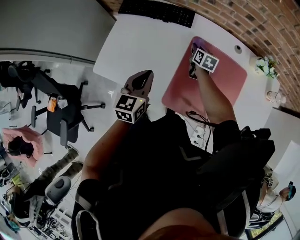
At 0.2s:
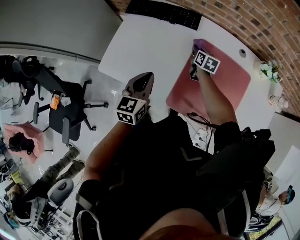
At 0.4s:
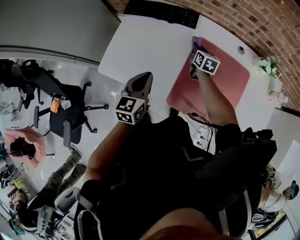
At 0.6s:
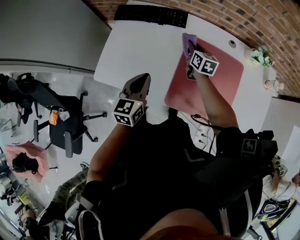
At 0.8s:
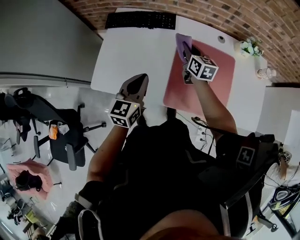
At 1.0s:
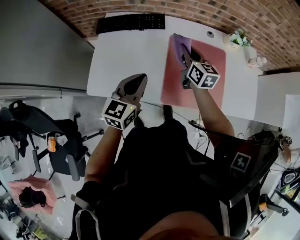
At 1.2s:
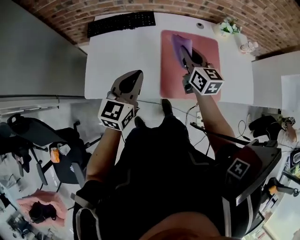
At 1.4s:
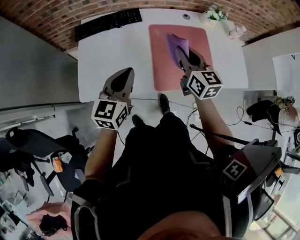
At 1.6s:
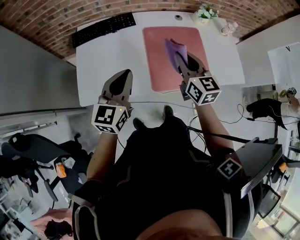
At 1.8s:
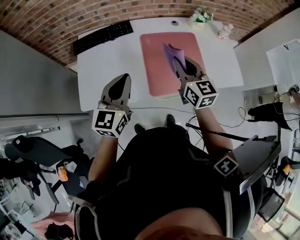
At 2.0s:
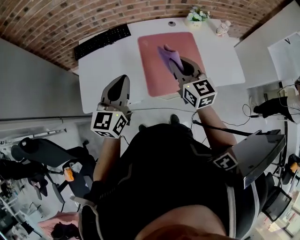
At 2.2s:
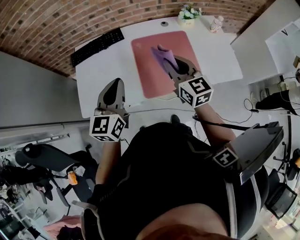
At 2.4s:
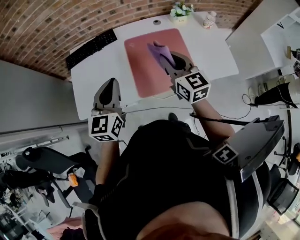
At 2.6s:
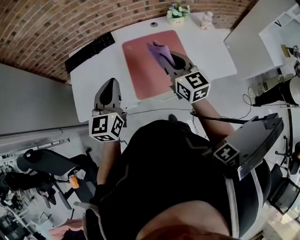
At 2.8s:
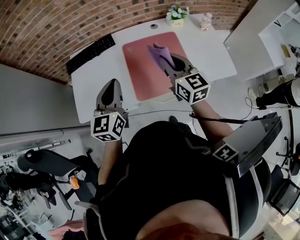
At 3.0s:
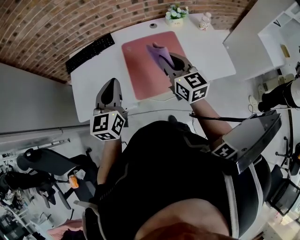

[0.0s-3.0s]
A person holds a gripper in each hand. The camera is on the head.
0.0s to 1.6s: The right gripper shifts approximately 25 cm upward, and turns by roughly 30 degrees; the left gripper moves upward, some 10 cm, and changes its angle by about 30 degrees.
1.6s to 3.0s: Both grippers move to the right, approximately 10 cm.

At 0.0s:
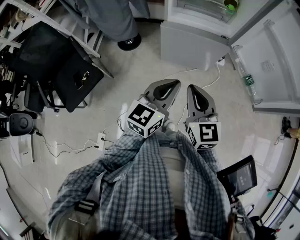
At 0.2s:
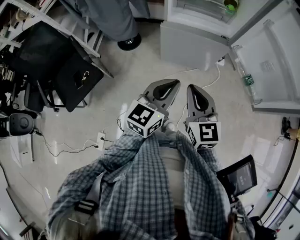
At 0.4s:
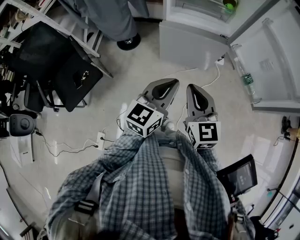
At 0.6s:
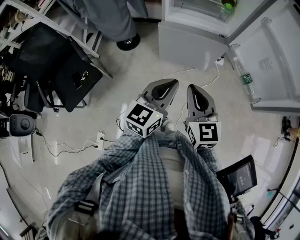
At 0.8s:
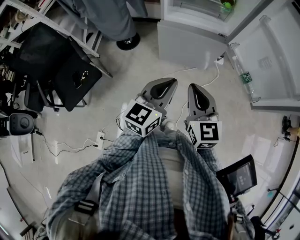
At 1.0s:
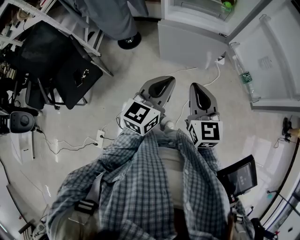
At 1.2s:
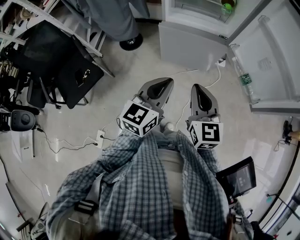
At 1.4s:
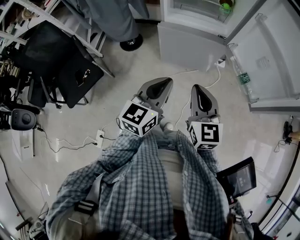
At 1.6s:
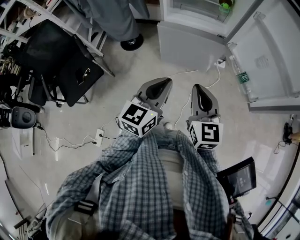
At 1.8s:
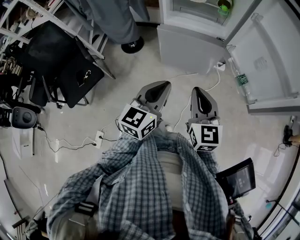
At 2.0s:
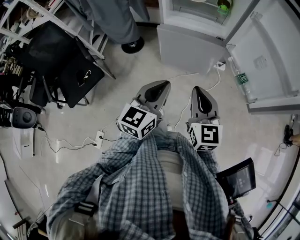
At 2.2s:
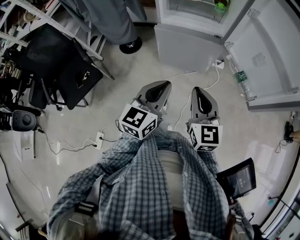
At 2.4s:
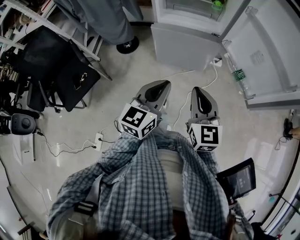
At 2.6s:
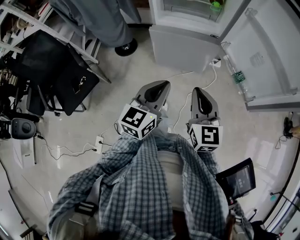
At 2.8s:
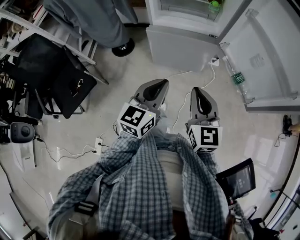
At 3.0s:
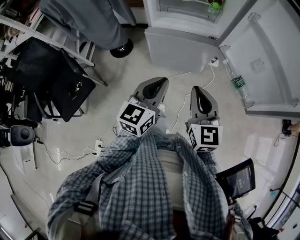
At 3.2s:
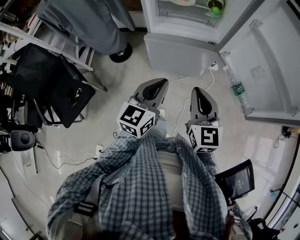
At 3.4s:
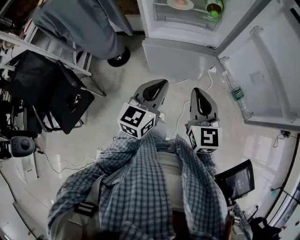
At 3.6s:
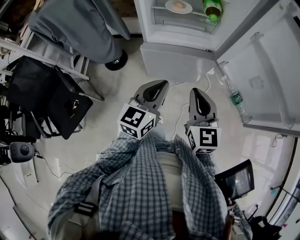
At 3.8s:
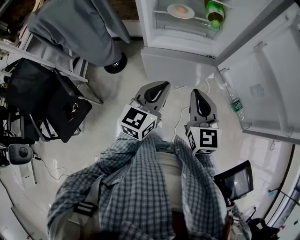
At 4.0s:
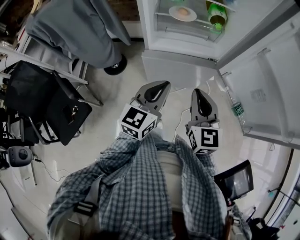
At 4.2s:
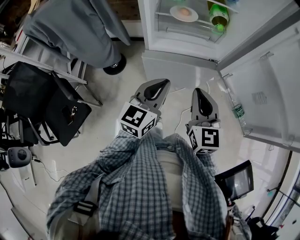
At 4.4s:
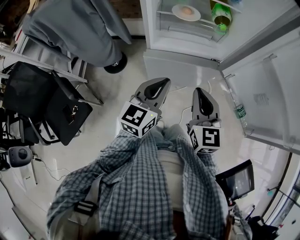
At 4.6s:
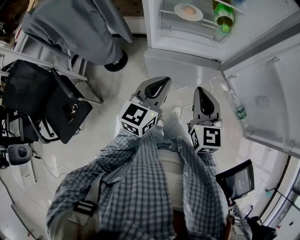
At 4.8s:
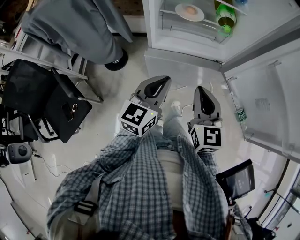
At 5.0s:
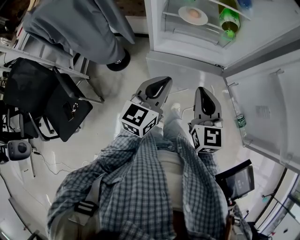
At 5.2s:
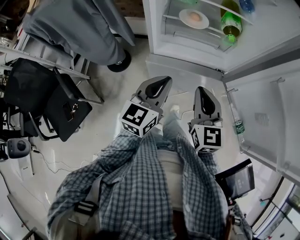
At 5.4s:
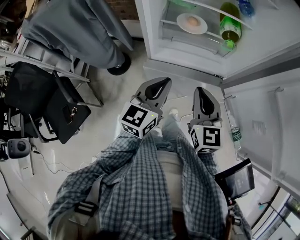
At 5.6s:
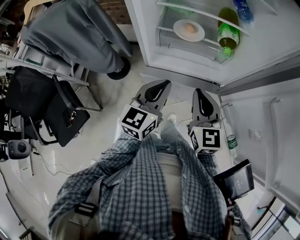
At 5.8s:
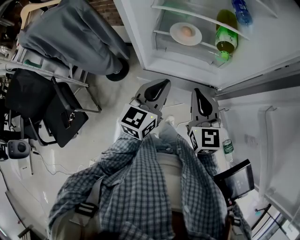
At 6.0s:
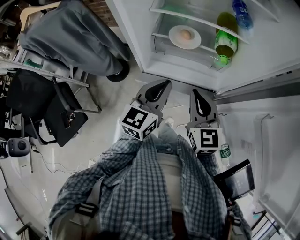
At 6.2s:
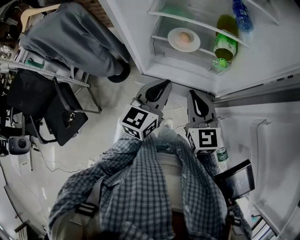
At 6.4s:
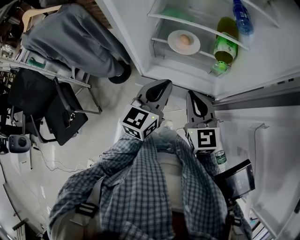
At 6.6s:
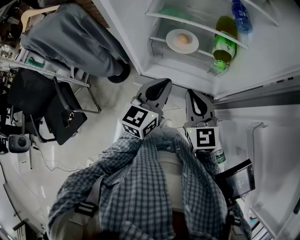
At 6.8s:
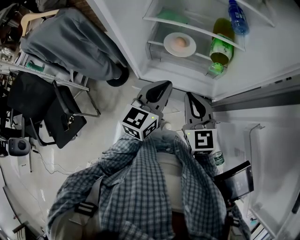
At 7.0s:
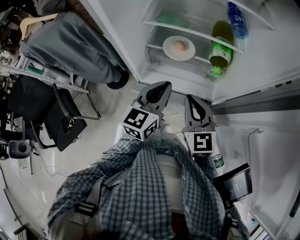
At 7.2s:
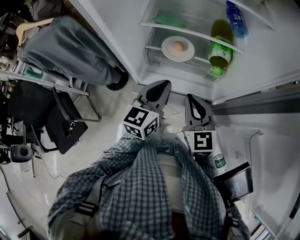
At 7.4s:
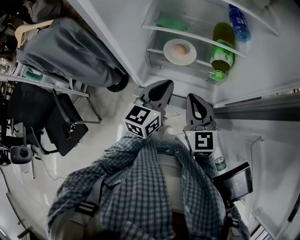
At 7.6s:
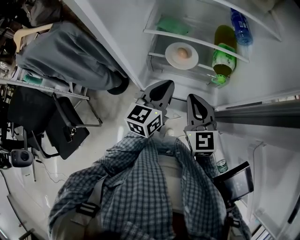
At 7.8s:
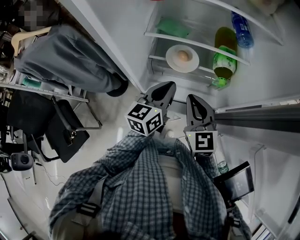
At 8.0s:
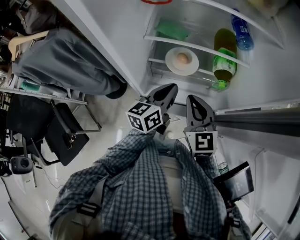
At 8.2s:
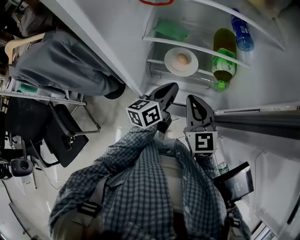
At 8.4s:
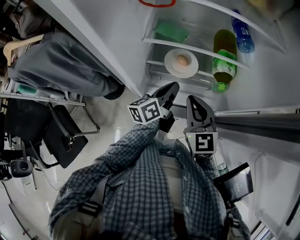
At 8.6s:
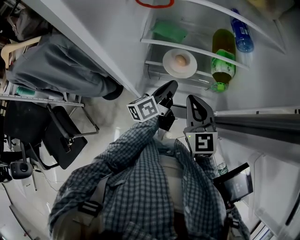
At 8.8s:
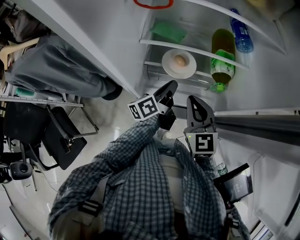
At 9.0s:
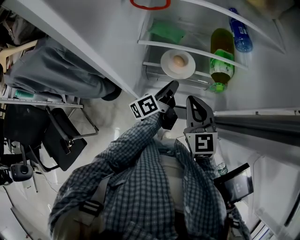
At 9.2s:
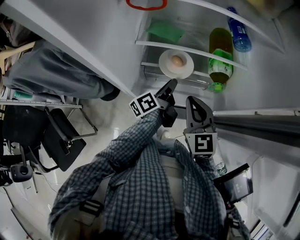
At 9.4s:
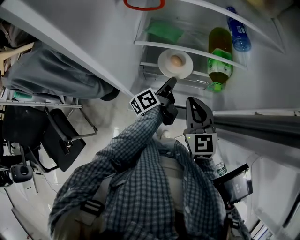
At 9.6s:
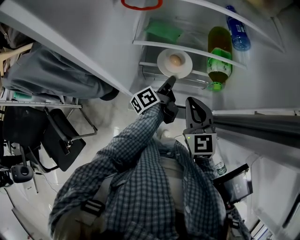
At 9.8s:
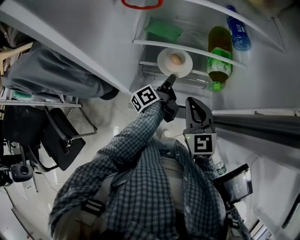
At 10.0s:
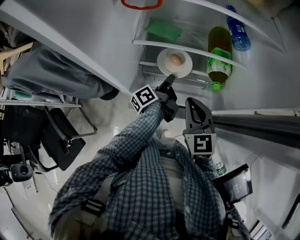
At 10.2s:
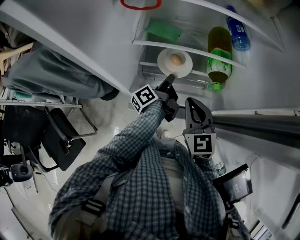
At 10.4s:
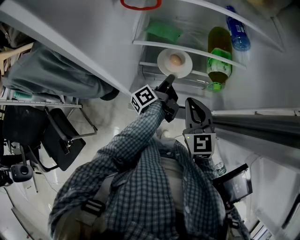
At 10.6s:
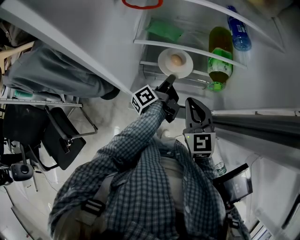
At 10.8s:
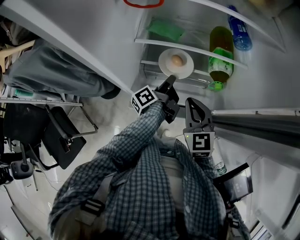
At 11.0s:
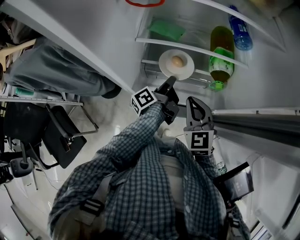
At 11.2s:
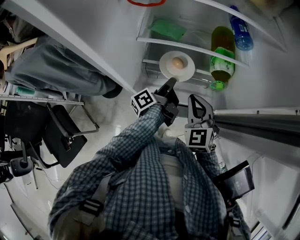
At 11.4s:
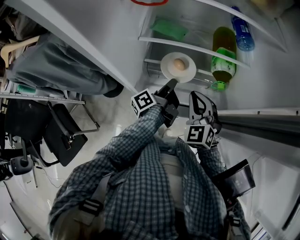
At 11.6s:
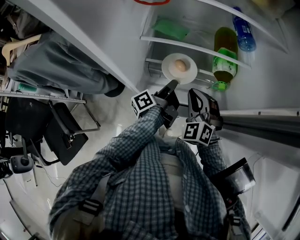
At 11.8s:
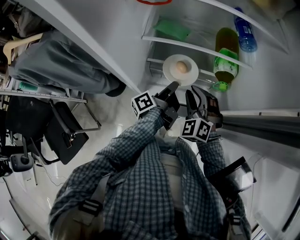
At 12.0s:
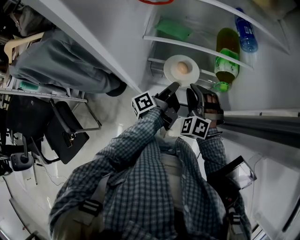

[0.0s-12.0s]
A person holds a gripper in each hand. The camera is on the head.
0.0s to 1.6s: The right gripper moves some 10 cm.
1.6s to 3.0s: The right gripper changes place by approximately 5 cm.
3.0s to 4.4s: The right gripper shifts by about 15 cm.
4.4s to 6.0s: The right gripper ends up some 20 cm from where it was.
6.0s to 7.6s: The right gripper ends up roughly 10 cm from where it was.
10.4s to 12.0s: The right gripper heads downward, covering roughly 5 cm, twists roughly 50 degrees counterclockwise, seen from behind, and opens its fingers.

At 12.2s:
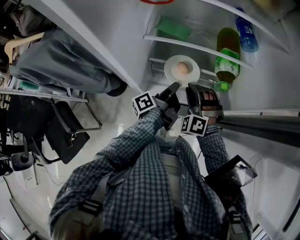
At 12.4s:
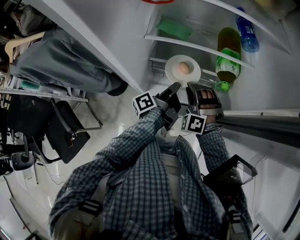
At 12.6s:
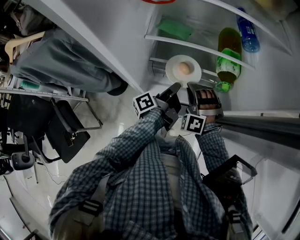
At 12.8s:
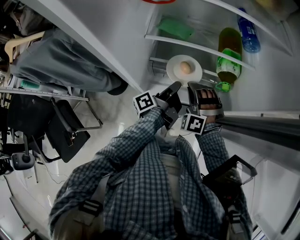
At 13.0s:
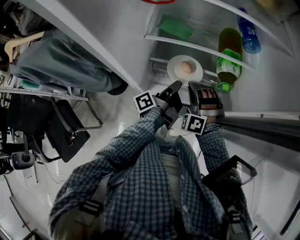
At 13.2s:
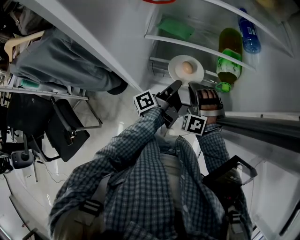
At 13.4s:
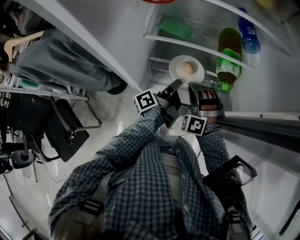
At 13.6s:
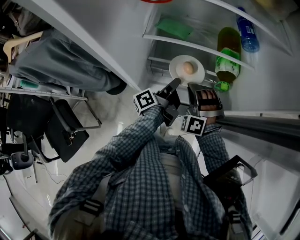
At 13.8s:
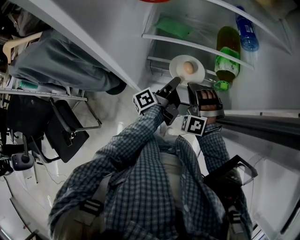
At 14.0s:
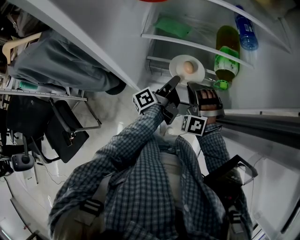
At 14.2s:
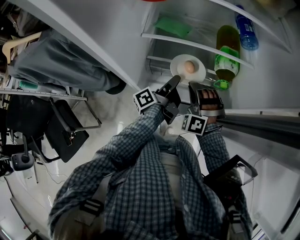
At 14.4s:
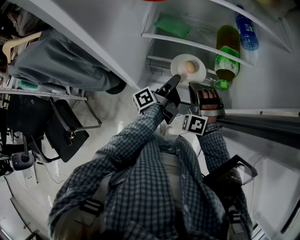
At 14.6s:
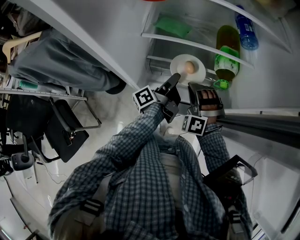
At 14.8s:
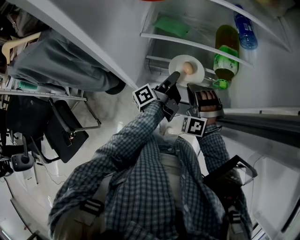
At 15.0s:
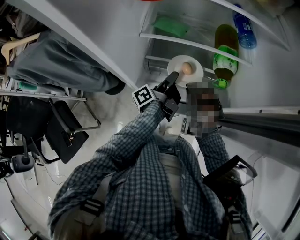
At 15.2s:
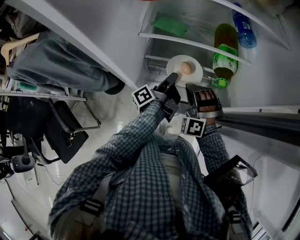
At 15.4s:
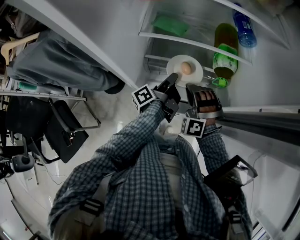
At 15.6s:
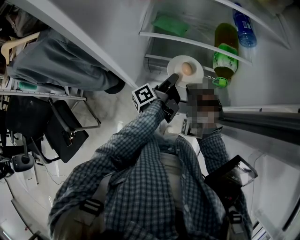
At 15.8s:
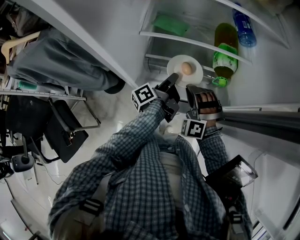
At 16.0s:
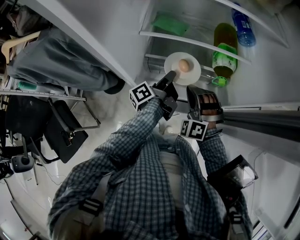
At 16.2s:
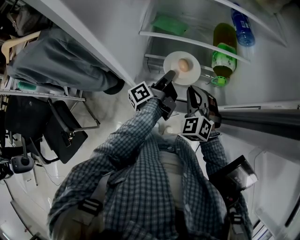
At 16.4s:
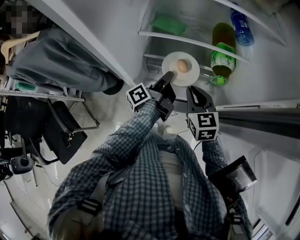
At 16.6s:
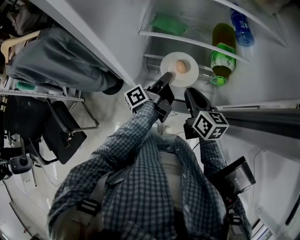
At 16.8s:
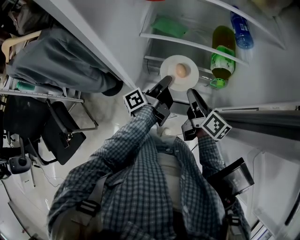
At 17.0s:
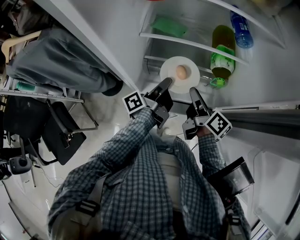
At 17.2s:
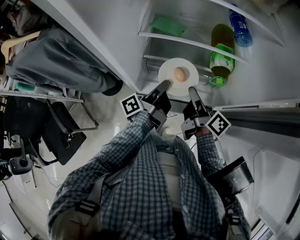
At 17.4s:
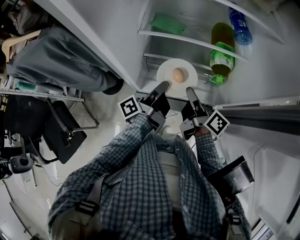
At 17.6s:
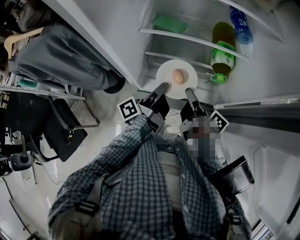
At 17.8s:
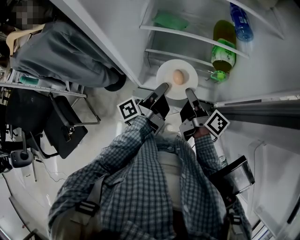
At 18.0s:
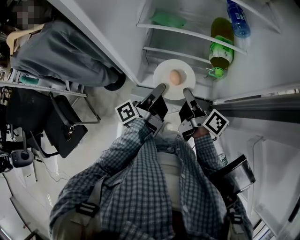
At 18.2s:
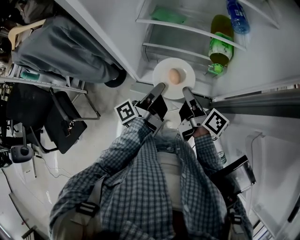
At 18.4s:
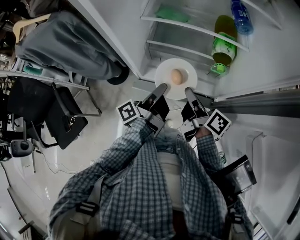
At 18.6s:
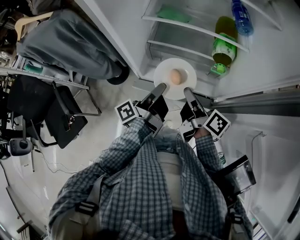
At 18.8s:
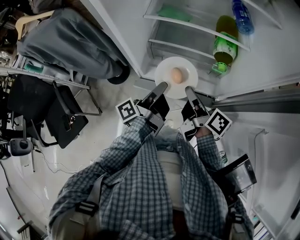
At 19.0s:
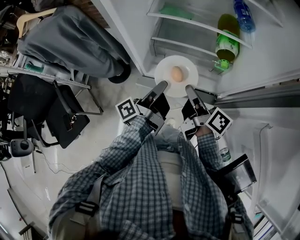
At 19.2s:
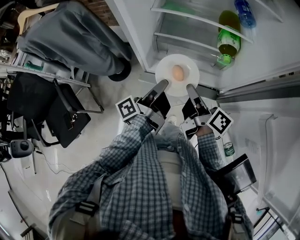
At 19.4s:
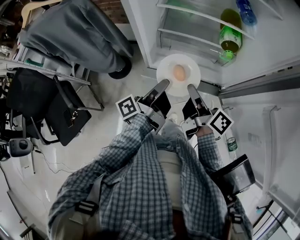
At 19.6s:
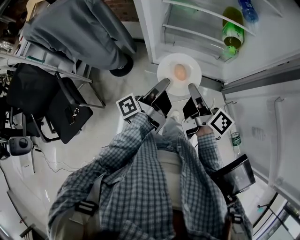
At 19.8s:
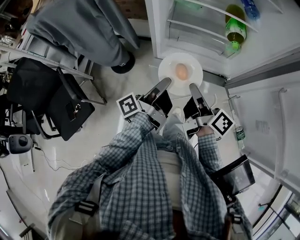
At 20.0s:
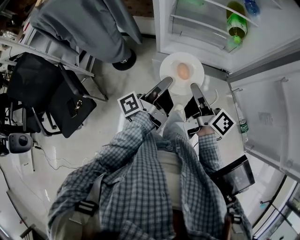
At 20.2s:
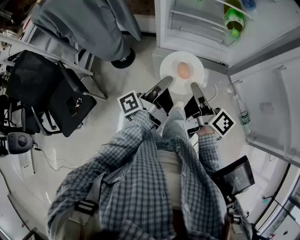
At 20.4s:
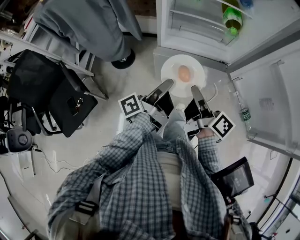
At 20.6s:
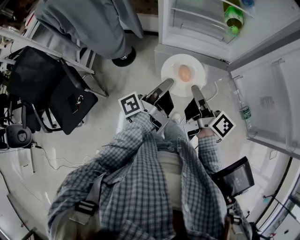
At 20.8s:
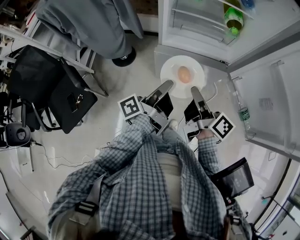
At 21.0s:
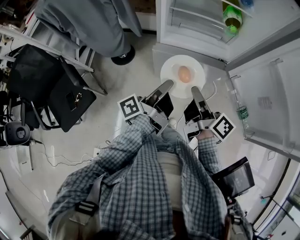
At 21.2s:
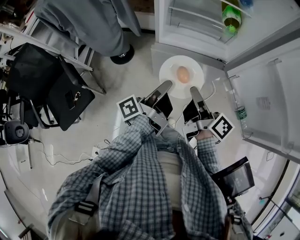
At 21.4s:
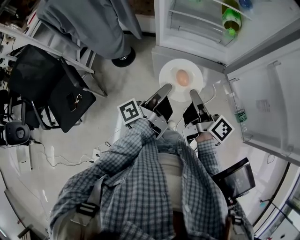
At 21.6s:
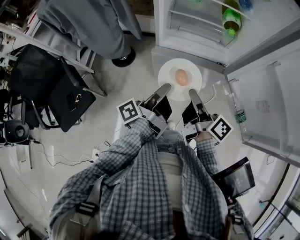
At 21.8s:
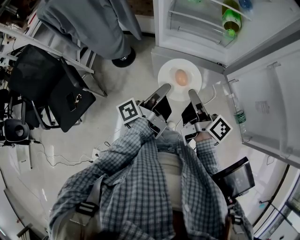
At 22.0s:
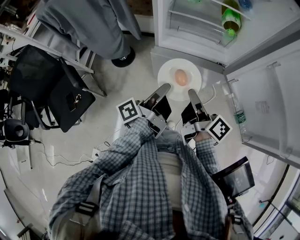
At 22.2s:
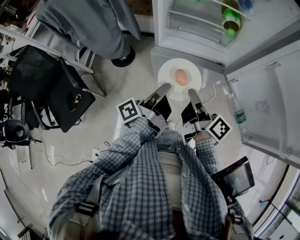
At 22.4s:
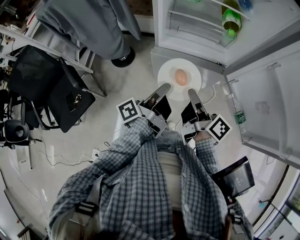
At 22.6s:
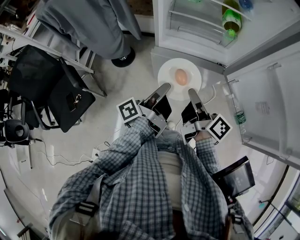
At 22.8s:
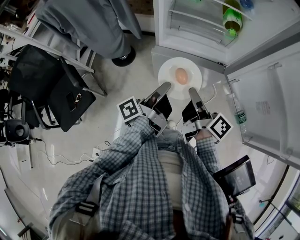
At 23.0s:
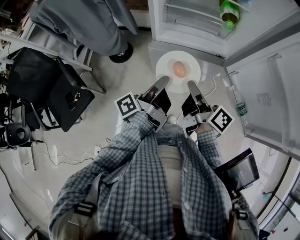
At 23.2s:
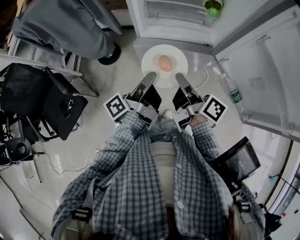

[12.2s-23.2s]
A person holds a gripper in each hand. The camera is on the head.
15.4s to 17.0s: The right gripper ends up some 5 cm from where it was, and twists about 140 degrees clockwise, seen from behind.
17.0s to 18.4s: The right gripper moves approximately 5 cm.
18.4s to 20.0s: The right gripper ends up about 20 cm from where it was.
20.0s to 21.6s: The right gripper ends up approximately 5 cm from where it was.
